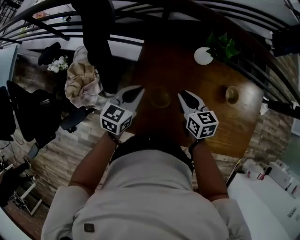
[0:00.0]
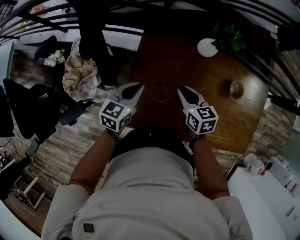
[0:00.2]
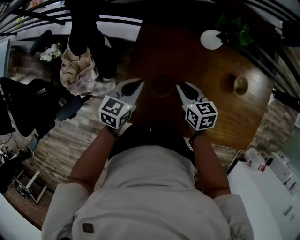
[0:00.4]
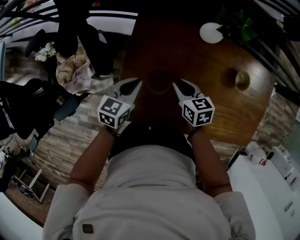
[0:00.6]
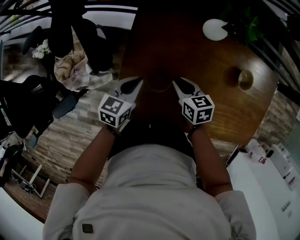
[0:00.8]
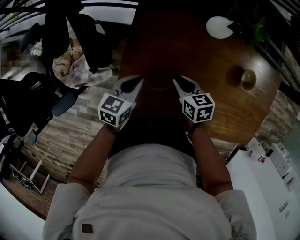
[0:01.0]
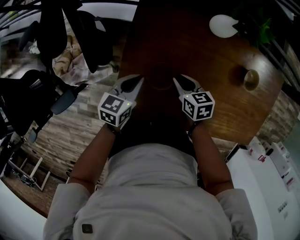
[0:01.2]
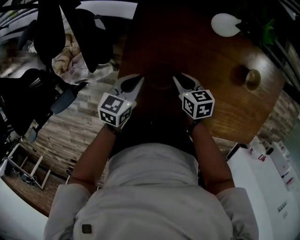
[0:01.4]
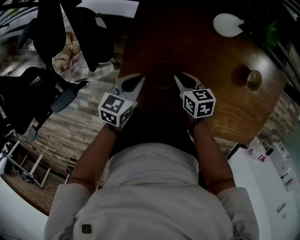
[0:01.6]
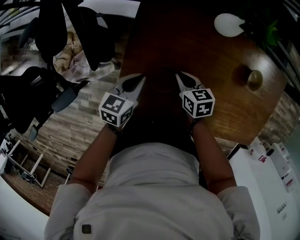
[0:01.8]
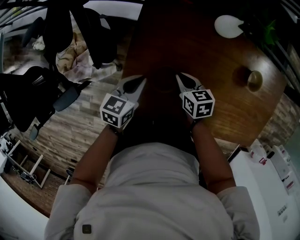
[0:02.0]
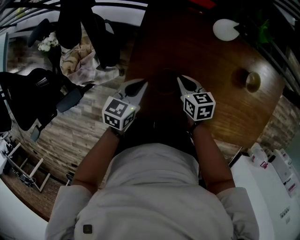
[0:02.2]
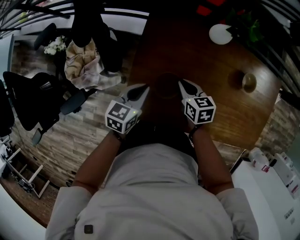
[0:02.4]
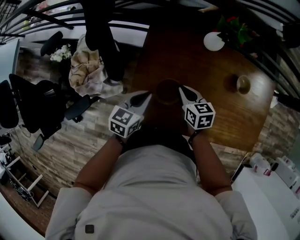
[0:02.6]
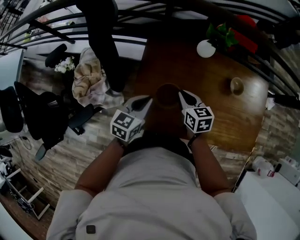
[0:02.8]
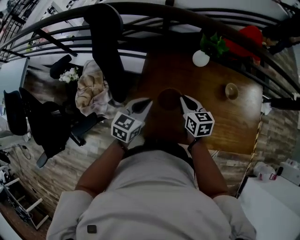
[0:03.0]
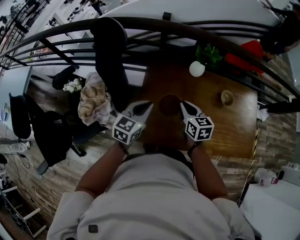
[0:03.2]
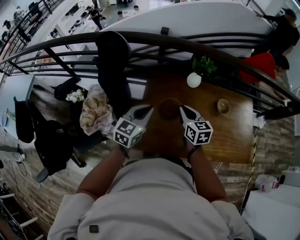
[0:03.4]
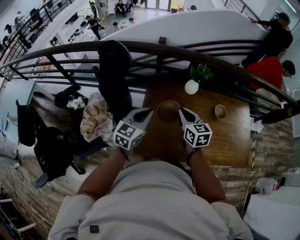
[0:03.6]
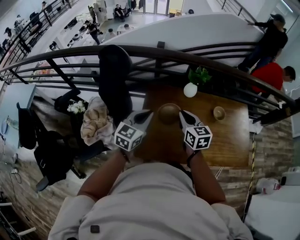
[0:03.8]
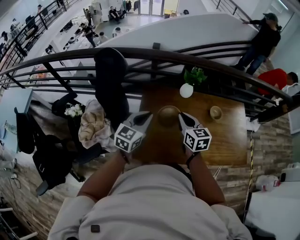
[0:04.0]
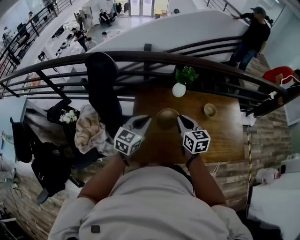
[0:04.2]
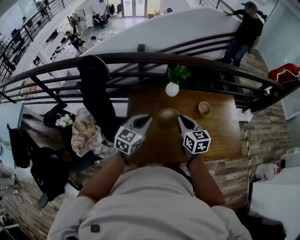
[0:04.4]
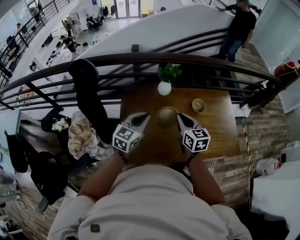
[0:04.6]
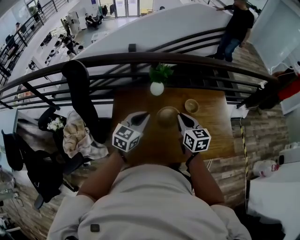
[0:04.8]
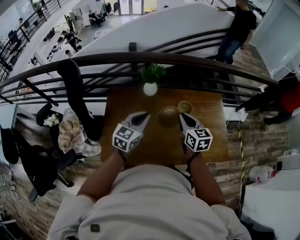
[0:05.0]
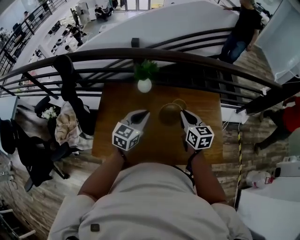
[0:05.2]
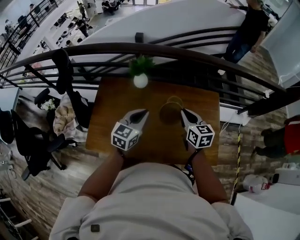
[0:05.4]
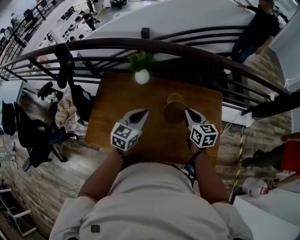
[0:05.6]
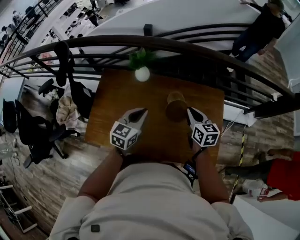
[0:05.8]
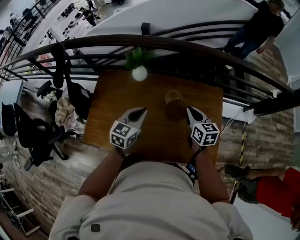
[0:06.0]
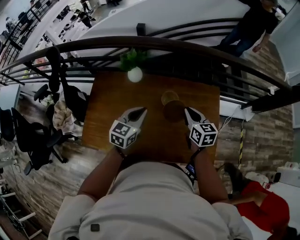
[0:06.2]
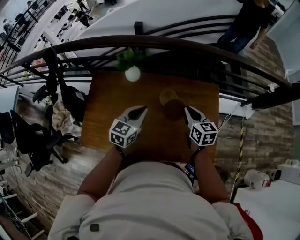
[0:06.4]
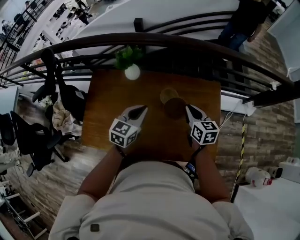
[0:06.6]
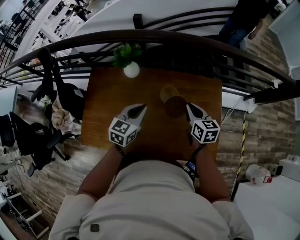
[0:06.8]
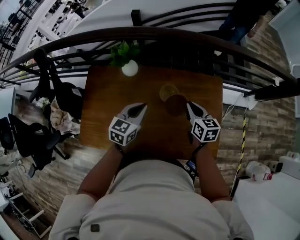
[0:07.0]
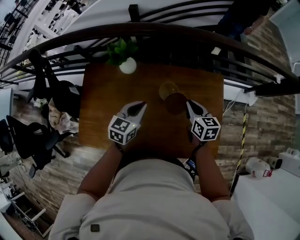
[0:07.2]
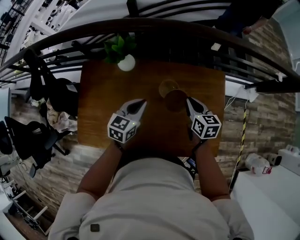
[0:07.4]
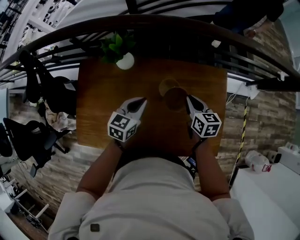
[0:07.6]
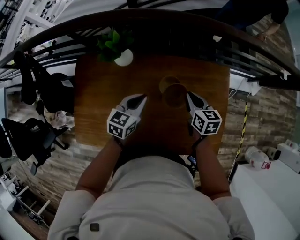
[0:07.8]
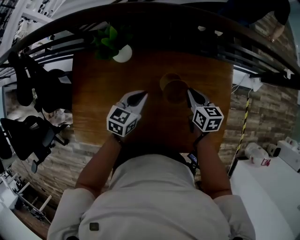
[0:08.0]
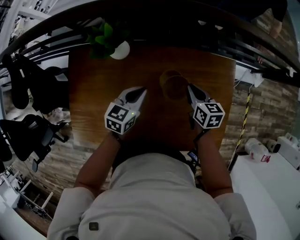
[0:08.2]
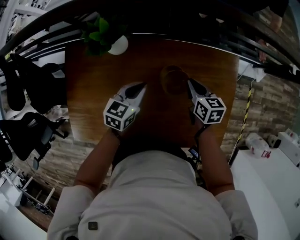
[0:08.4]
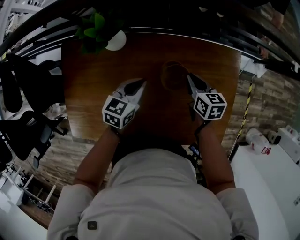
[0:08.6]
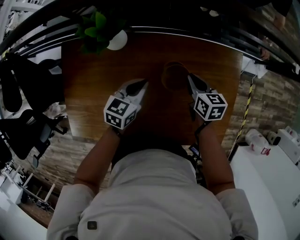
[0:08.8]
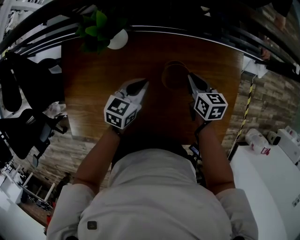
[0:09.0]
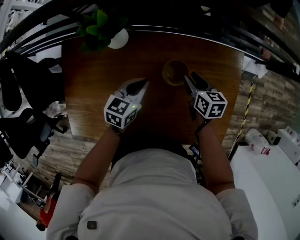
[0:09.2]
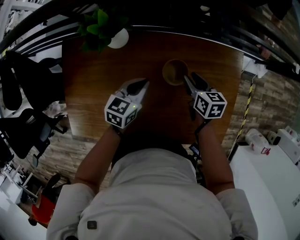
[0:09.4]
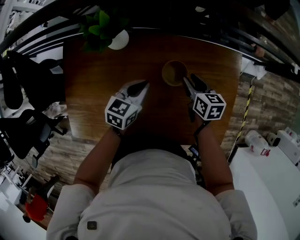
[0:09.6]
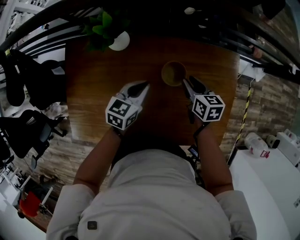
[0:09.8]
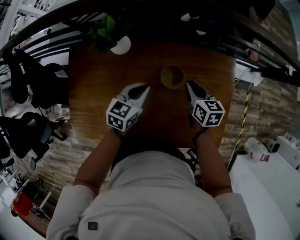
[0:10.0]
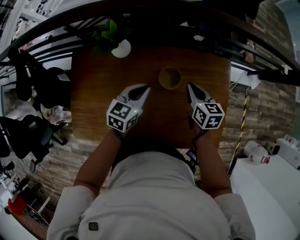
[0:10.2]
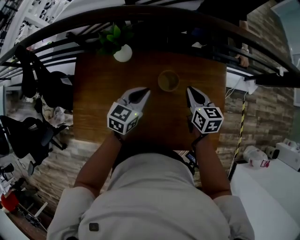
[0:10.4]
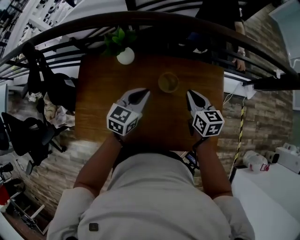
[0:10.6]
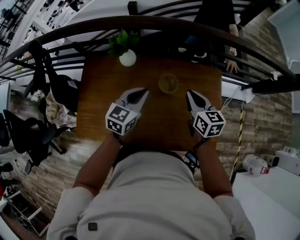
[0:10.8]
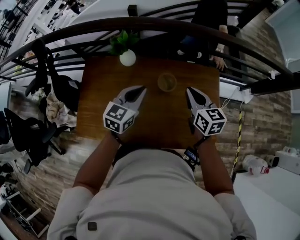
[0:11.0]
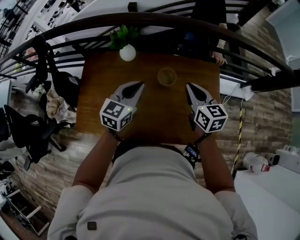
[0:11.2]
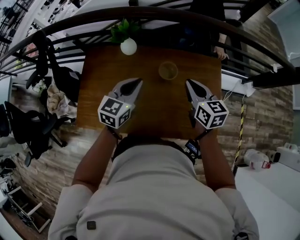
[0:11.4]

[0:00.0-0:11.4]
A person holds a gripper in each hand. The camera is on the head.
0:00.0 to 0:01.4: The two grippers go some 20 cm downward.
0:01.4 to 0:02.8: The left gripper shifts some 15 cm upward and backward. The right gripper goes roughly 15 cm upward.
0:02.8 to 0:04.2: Both grippers move upward, approximately 20 cm. The left gripper rotates about 20 degrees, while the right gripper changes its angle by roughly 20 degrees.
0:04.2 to 0:05.6: Both grippers are carried to the right, about 40 cm.
0:05.6 to 0:07.2: The right gripper shifts some 10 cm downward and forward. The left gripper goes about 15 cm forward and downward.
0:07.2 to 0:08.6: Both grippers move downward and forward, roughly 20 cm.
0:08.6 to 0:10.0: The right gripper changes place by some 5 cm, and opens and closes again, while the left gripper changes place by roughly 5 cm.
0:10.0 to 0:11.4: The grippers both shift upward and backward by roughly 25 cm.

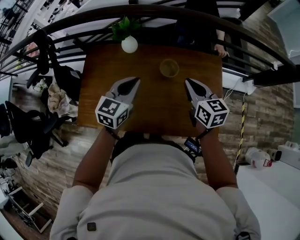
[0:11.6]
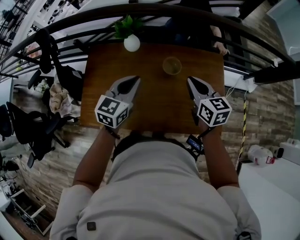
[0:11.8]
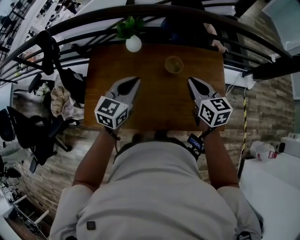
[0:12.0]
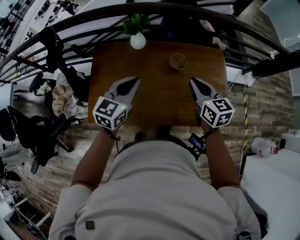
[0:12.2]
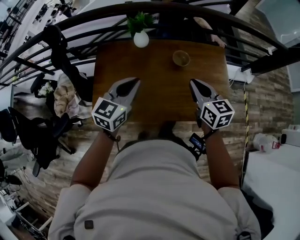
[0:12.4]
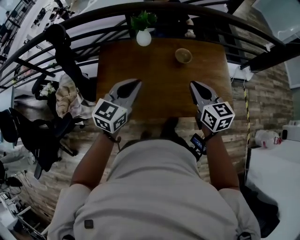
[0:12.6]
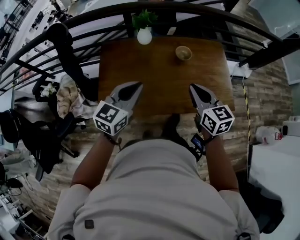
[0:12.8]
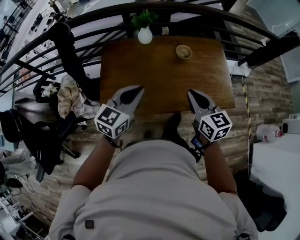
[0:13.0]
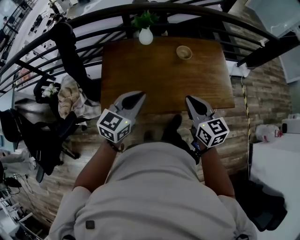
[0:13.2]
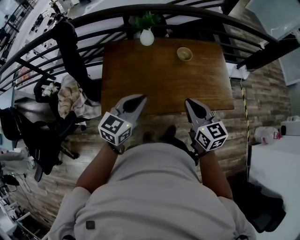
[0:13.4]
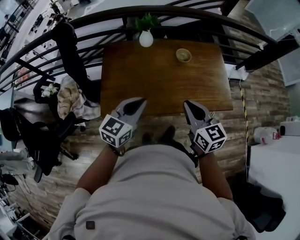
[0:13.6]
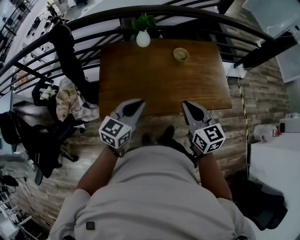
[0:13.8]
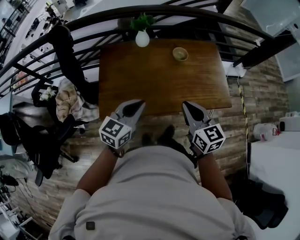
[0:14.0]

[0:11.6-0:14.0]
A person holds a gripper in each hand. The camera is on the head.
0:11.6 to 0:12.8: The grippers both shift backward and to the left by about 30 cm.
0:12.8 to 0:14.0: The grippers both shift backward by some 10 cm.

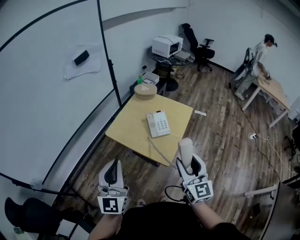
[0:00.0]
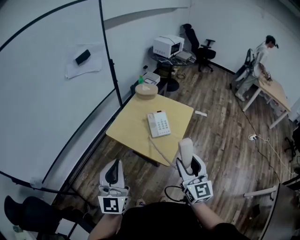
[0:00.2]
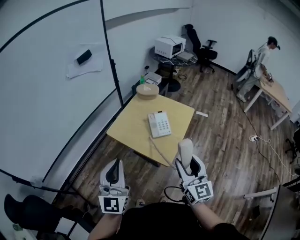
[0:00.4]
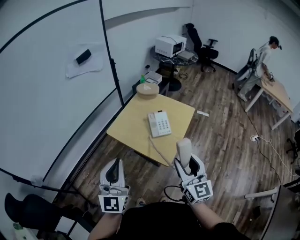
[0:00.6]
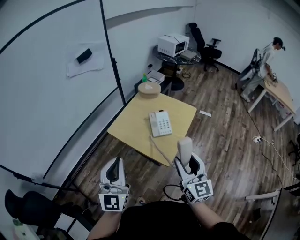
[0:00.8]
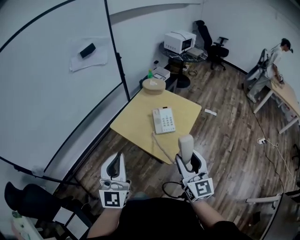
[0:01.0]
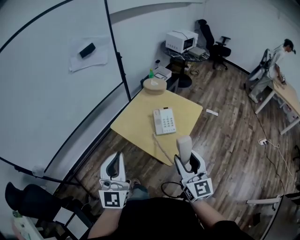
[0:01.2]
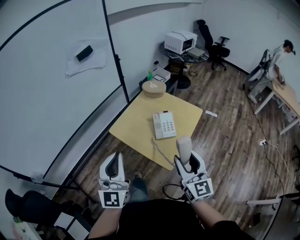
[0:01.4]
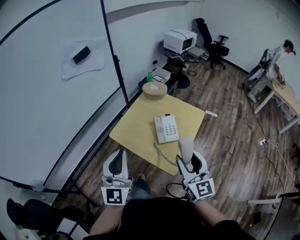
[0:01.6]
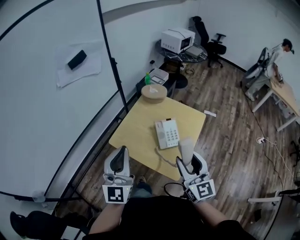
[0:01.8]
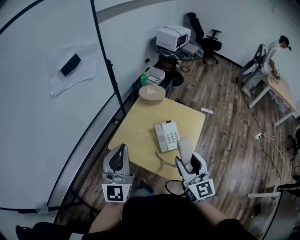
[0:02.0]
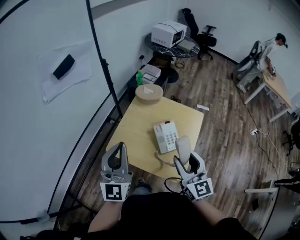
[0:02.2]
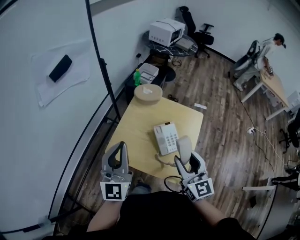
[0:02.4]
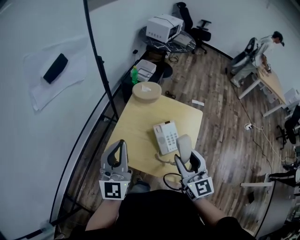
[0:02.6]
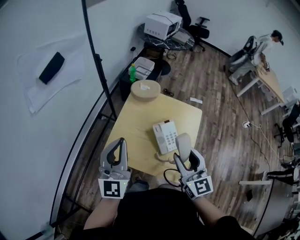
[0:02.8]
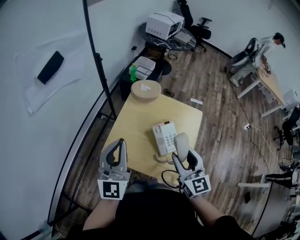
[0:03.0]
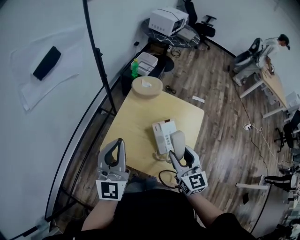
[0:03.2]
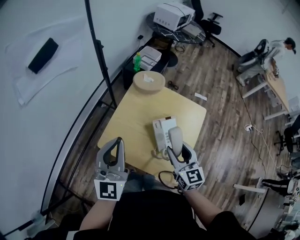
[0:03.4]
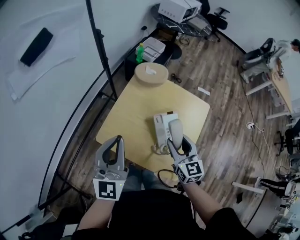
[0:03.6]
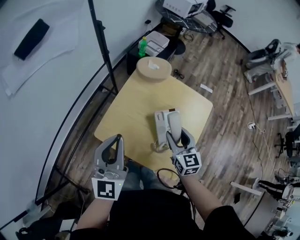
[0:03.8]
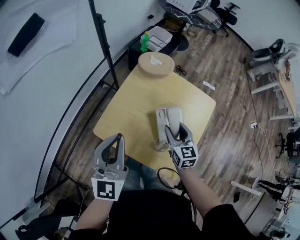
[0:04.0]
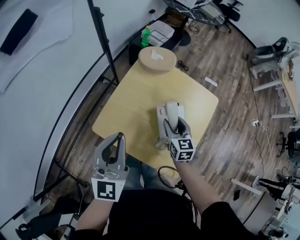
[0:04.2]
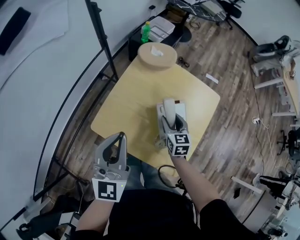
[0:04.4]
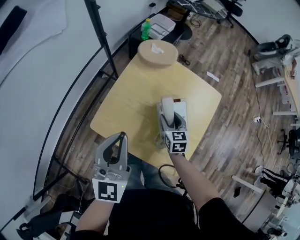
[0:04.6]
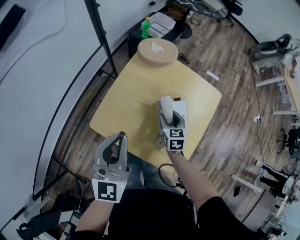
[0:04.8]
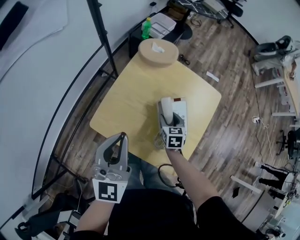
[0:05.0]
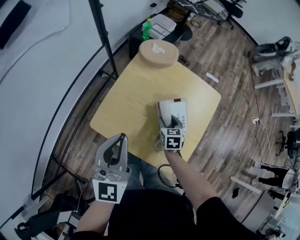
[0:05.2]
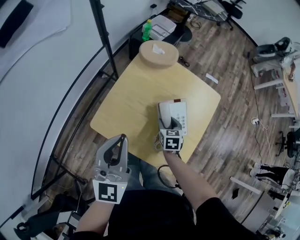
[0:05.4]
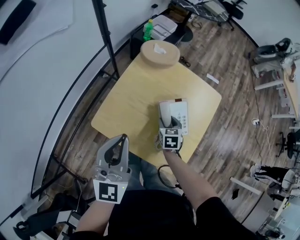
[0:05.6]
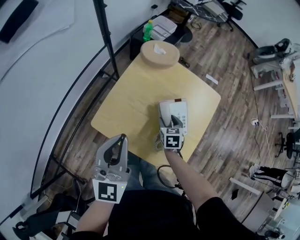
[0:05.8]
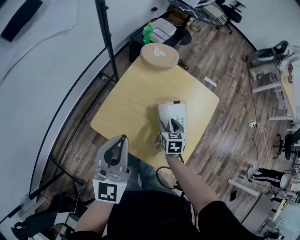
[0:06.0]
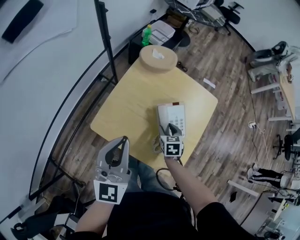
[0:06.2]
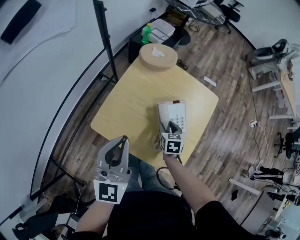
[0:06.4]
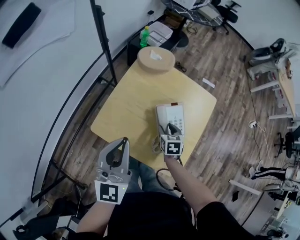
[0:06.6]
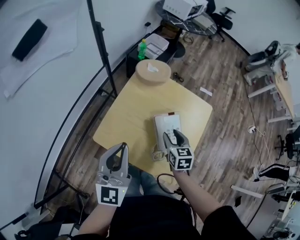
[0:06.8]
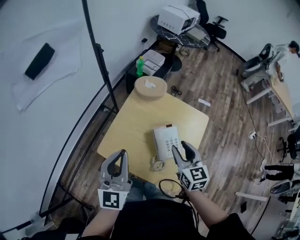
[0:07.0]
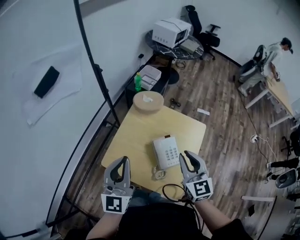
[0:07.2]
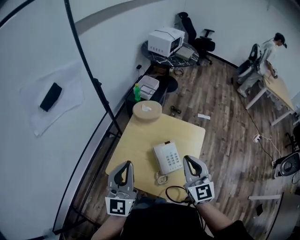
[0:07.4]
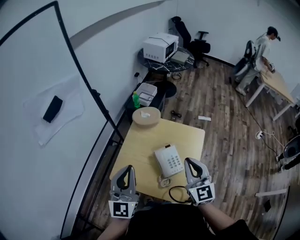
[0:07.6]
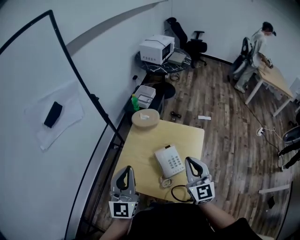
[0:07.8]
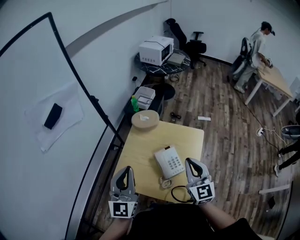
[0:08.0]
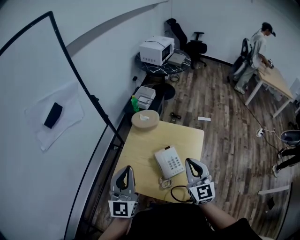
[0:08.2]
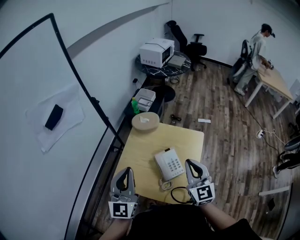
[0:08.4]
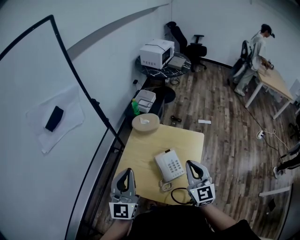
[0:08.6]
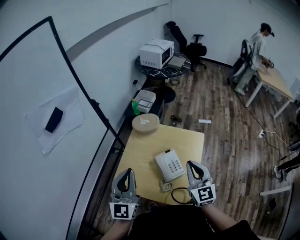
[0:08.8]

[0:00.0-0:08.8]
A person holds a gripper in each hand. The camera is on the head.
0:00.0 to 0:01.4: Both grippers move forward, roughly 5 cm.
0:01.4 to 0:03.0: The right gripper moves forward and to the left, some 25 cm, while the left gripper shifts about 30 cm forward.
0:03.0 to 0:04.4: The left gripper travels downward by about 10 cm. The right gripper shifts approximately 30 cm downward and forward, and changes its angle by some 20 degrees.
0:04.4 to 0:05.8: The right gripper moves downward, some 5 cm.
0:05.8 to 0:07.4: The left gripper goes some 10 cm upward. Meanwhile the right gripper is displaced upward by about 35 cm, tilts its fingers approximately 40 degrees upward, and closes.
0:07.4 to 0:08.8: There are only small adjustments of the grippers.

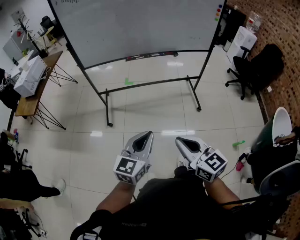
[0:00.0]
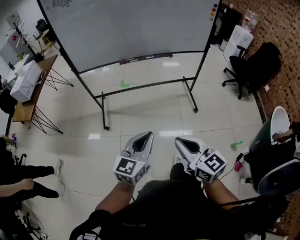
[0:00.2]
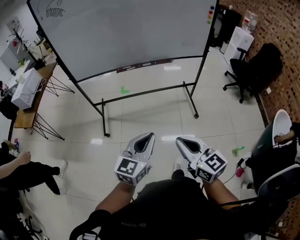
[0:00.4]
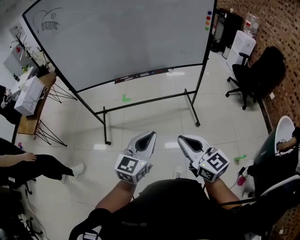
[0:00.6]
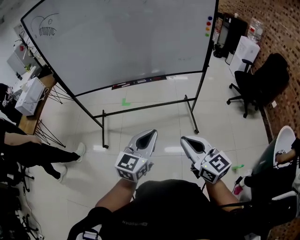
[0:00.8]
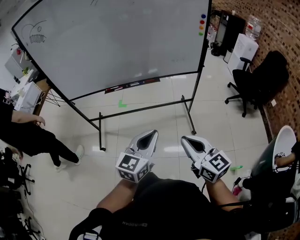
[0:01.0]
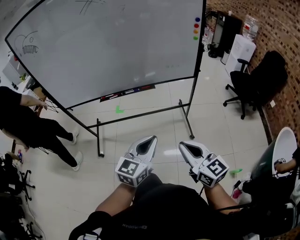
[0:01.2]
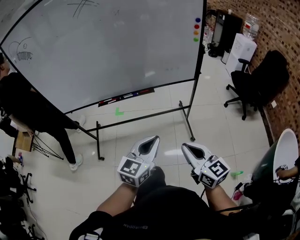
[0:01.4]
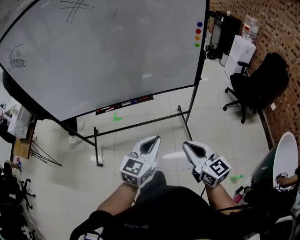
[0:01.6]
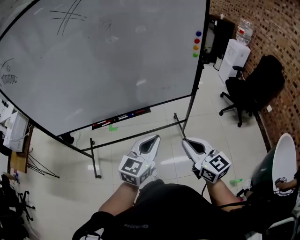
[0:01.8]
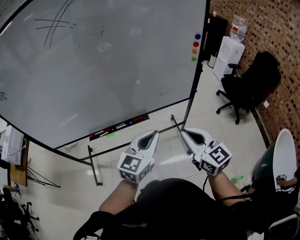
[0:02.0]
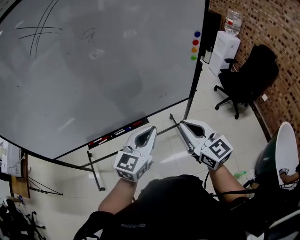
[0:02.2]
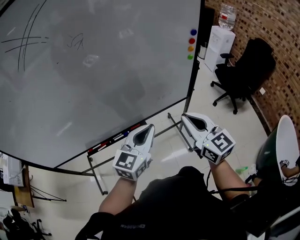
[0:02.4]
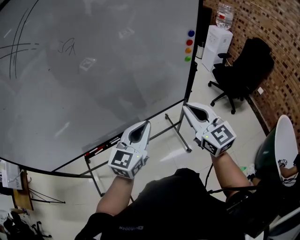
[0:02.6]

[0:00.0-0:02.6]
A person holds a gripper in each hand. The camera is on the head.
0:00.0 to 0:01.2: Both grippers travel together to the right and forward, approximately 35 cm.
0:01.2 to 0:02.6: The two grippers go approximately 40 cm forward. The right gripper swivels roughly 30 degrees.
